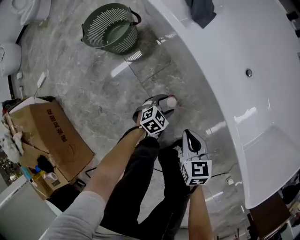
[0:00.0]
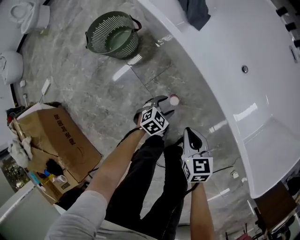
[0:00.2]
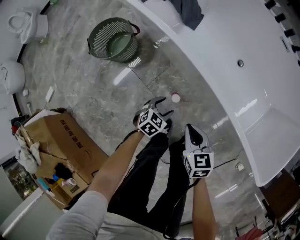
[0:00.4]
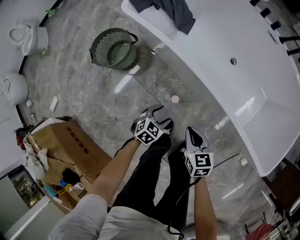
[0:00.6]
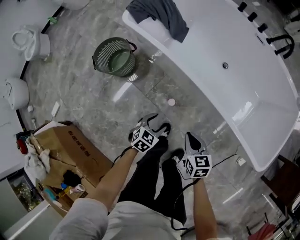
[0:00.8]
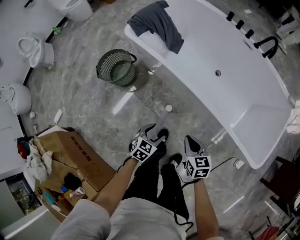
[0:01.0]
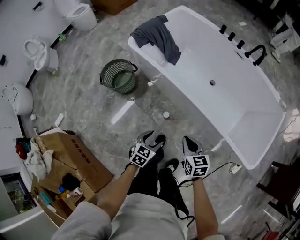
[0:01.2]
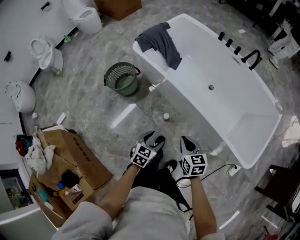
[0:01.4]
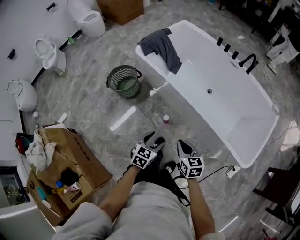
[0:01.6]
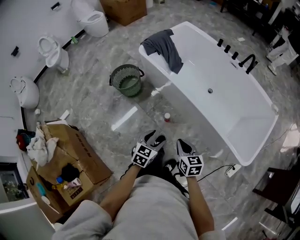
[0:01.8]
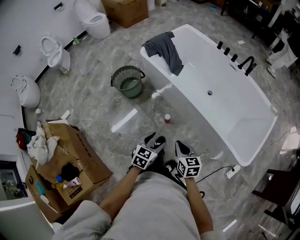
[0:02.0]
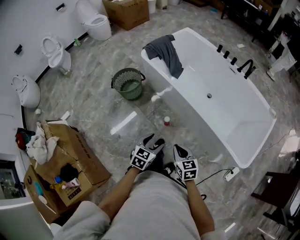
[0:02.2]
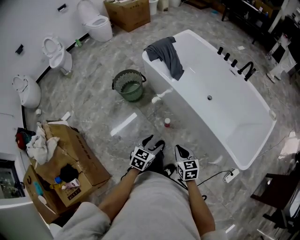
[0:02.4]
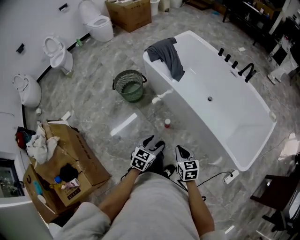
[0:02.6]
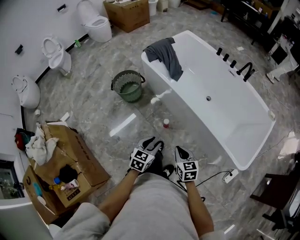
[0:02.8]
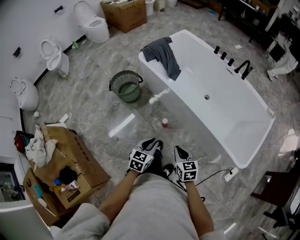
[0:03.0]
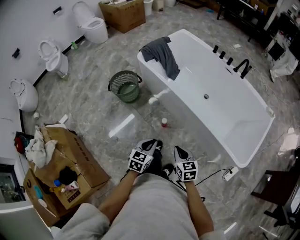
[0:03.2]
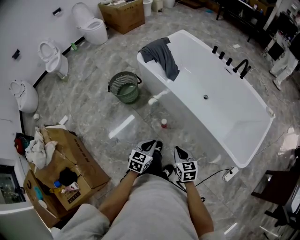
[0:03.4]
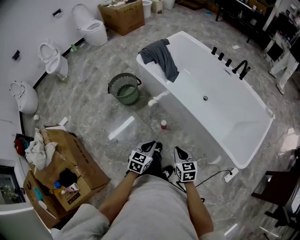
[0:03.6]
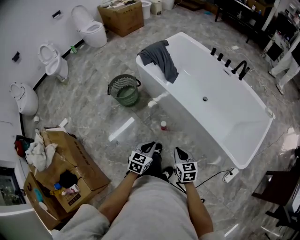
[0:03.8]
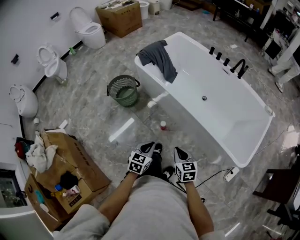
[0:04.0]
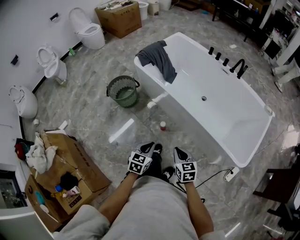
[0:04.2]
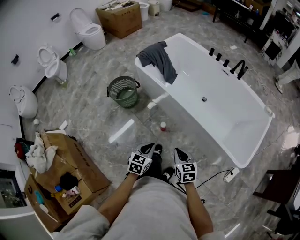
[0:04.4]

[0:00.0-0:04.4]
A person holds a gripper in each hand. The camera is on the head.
0:00.0 to 0:01.4: Both grippers travel together upward and backward, about 40 cm.
0:01.4 to 0:03.0: The right gripper moves backward, approximately 10 cm. The left gripper is displaced upward and backward by roughly 10 cm, and closes up.
0:03.0 to 0:04.4: The two grippers keep their place.

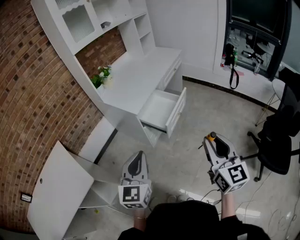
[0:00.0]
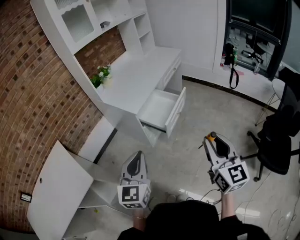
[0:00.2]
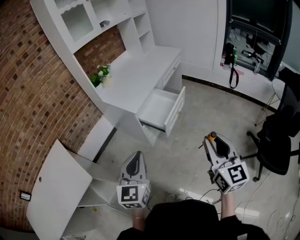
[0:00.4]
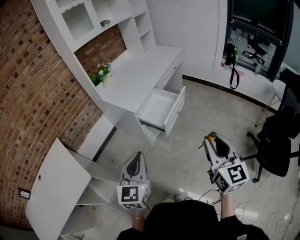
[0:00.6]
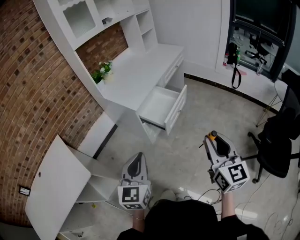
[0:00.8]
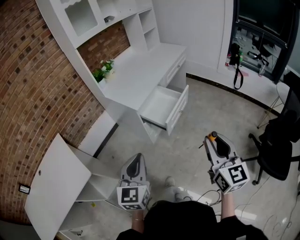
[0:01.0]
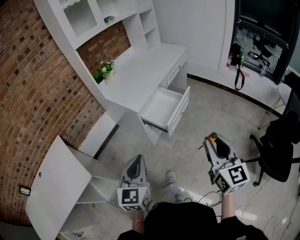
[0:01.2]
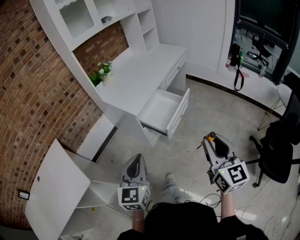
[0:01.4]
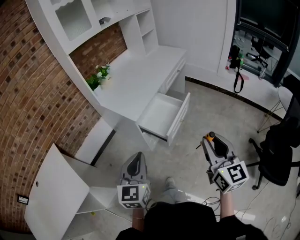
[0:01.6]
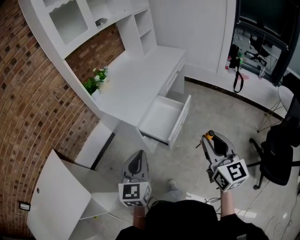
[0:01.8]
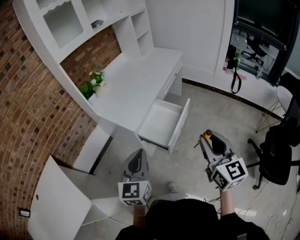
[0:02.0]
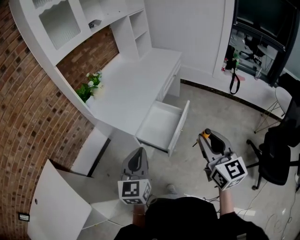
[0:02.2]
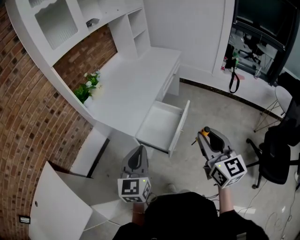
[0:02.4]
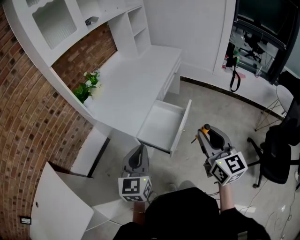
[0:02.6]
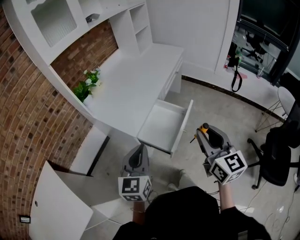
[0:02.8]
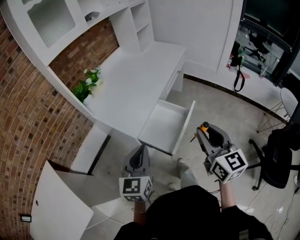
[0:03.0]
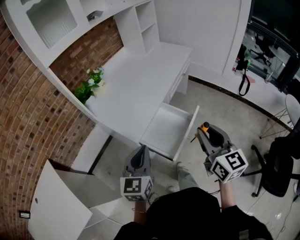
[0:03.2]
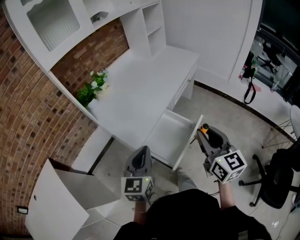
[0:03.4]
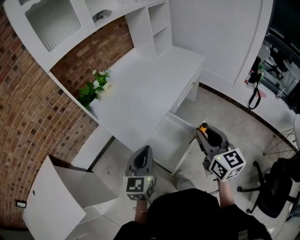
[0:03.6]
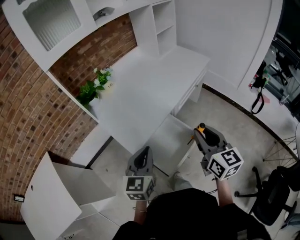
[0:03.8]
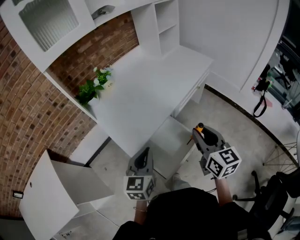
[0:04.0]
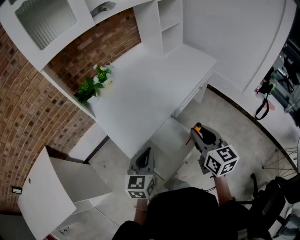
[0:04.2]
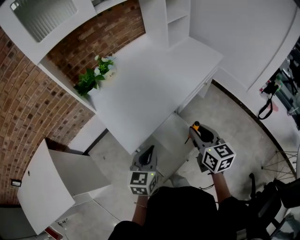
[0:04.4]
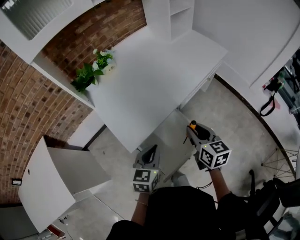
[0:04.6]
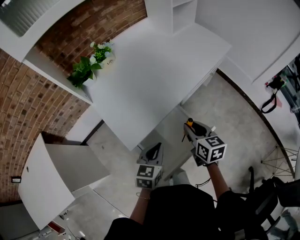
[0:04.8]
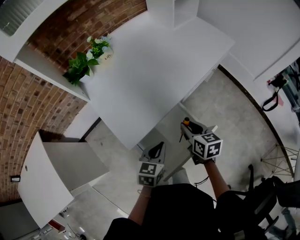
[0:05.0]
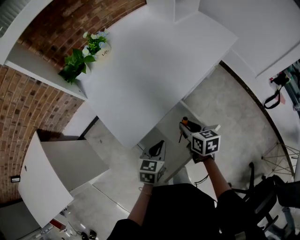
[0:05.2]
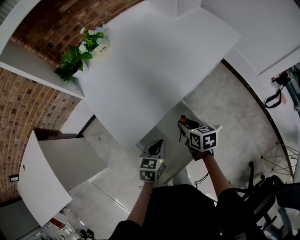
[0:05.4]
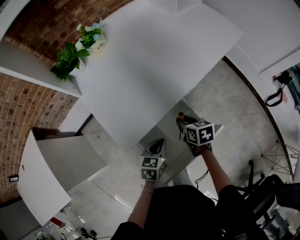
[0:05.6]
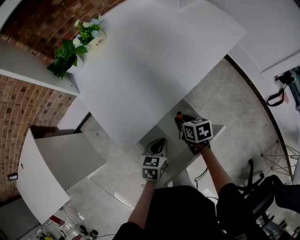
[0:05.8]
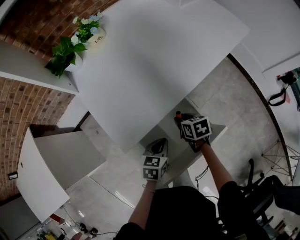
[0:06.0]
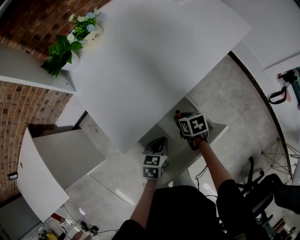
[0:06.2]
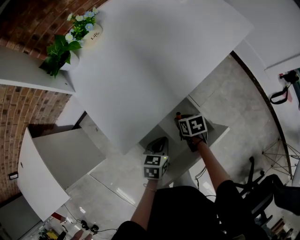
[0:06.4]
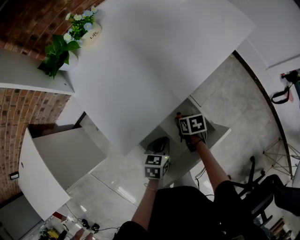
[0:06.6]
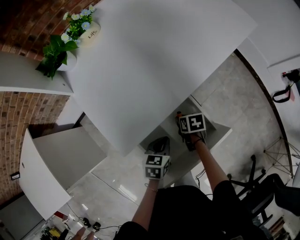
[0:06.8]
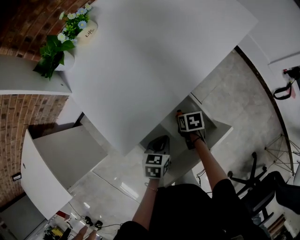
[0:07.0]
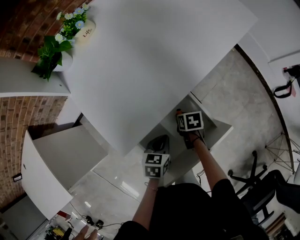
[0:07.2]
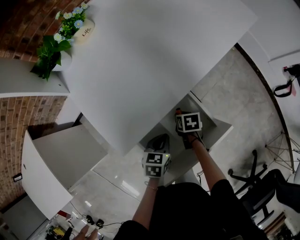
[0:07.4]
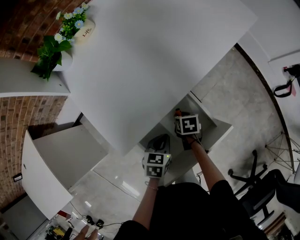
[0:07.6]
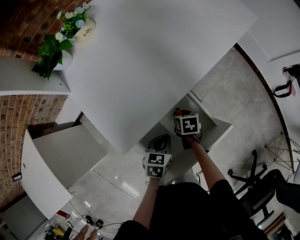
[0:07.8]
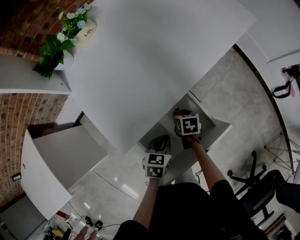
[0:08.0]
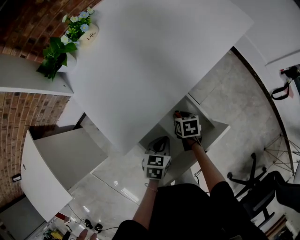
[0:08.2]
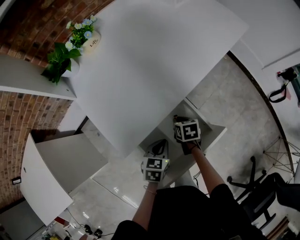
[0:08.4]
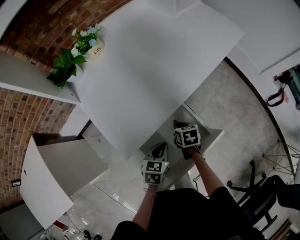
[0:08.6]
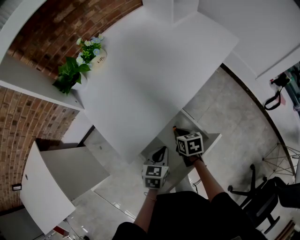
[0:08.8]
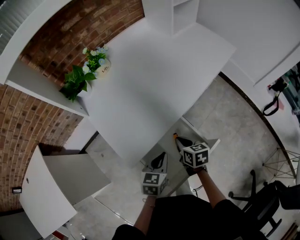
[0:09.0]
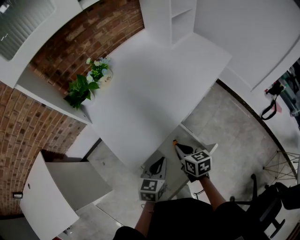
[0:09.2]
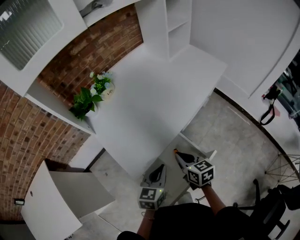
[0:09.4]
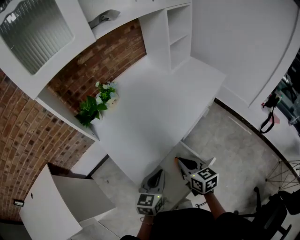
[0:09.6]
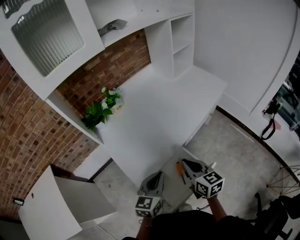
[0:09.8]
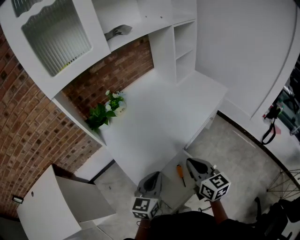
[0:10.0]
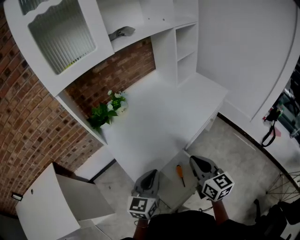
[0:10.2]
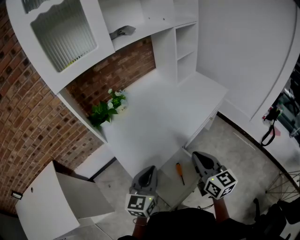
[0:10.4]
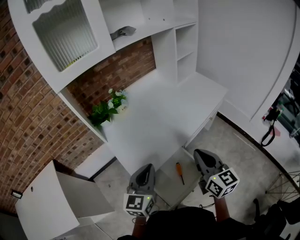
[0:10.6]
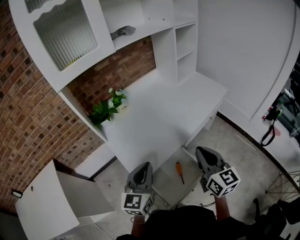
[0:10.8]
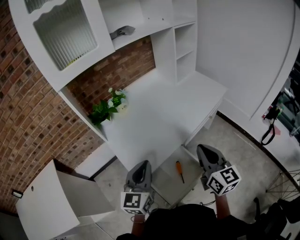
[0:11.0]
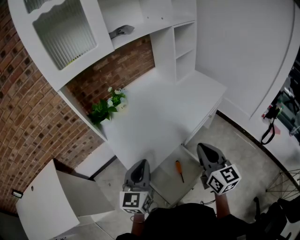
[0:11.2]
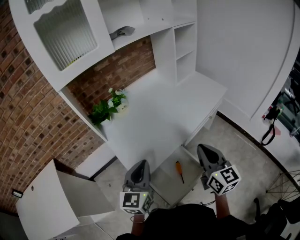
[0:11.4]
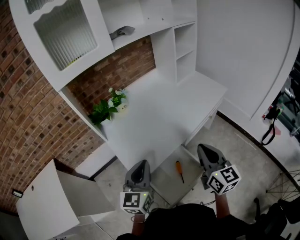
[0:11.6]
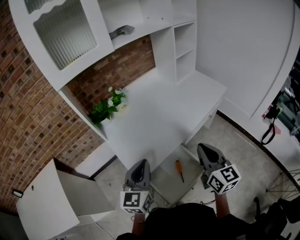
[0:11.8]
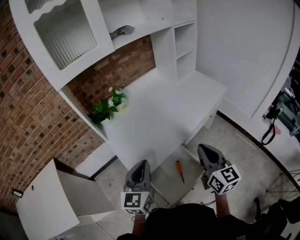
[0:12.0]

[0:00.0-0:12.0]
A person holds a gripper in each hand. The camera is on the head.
0:00.0 to 0:01.6: Both grippers travel together forward, some 10 cm.
0:01.6 to 0:03.0: Both grippers move forward, roughly 20 cm.
0:03.0 to 0:04.4: The right gripper moves forward, approximately 25 cm, and rotates approximately 20 degrees, while the left gripper shifts about 20 cm forward, downward and to the right.
0:04.4 to 0:06.0: The grippers both shift downward by roughly 25 cm. The right gripper points its fingers some 40 degrees further downward, while the left gripper swivels roughly 30 degrees.
0:06.0 to 0:07.6: The right gripper shifts approximately 10 cm downward.
0:07.6 to 0:09.0: Both grippers travel together upward, some 15 cm. The right gripper swivels about 30 degrees, and closes its fingers.
0:09.0 to 0:10.4: The grippers both shift upward by approximately 25 cm. The right gripper tilts its fingers some 40 degrees upward. The left gripper swivels some 30 degrees.
0:10.4 to 0:12.0: The grippers stay close to where they were, moving slightly.

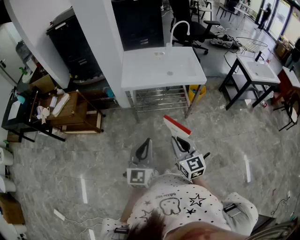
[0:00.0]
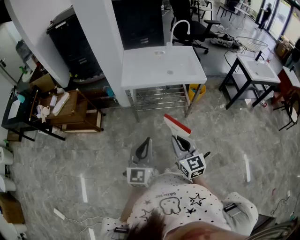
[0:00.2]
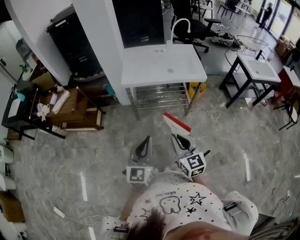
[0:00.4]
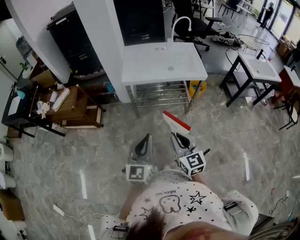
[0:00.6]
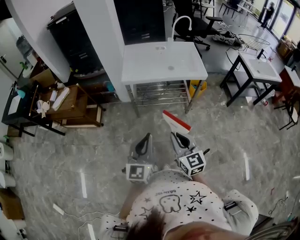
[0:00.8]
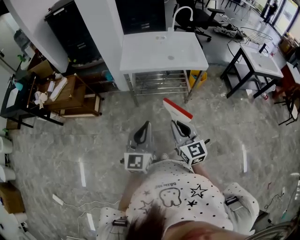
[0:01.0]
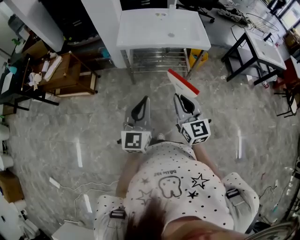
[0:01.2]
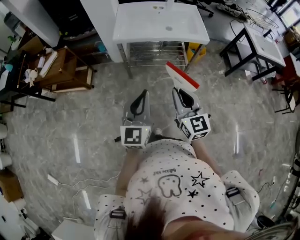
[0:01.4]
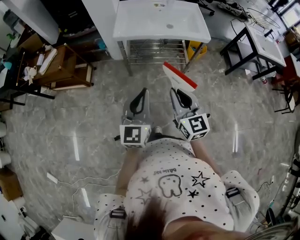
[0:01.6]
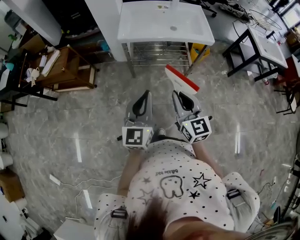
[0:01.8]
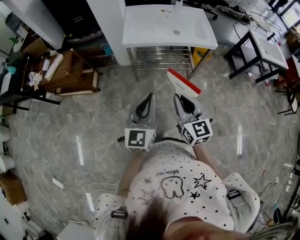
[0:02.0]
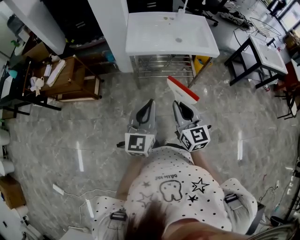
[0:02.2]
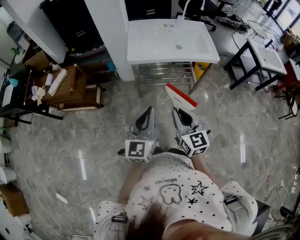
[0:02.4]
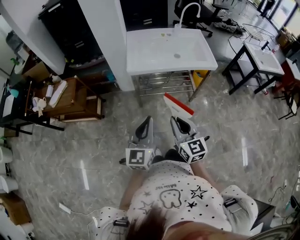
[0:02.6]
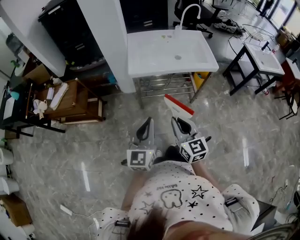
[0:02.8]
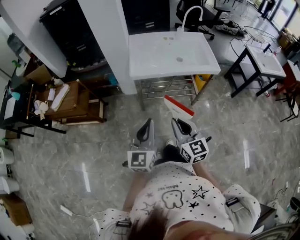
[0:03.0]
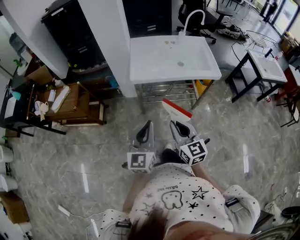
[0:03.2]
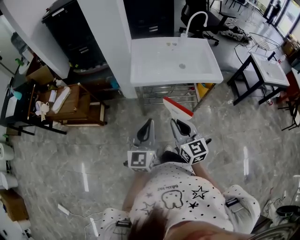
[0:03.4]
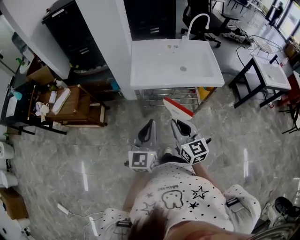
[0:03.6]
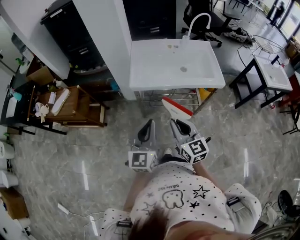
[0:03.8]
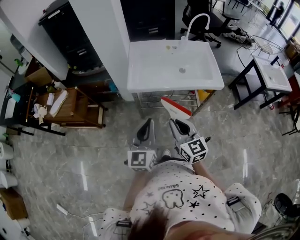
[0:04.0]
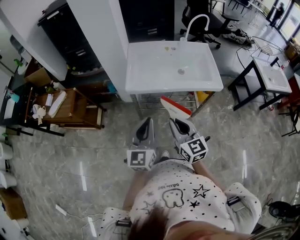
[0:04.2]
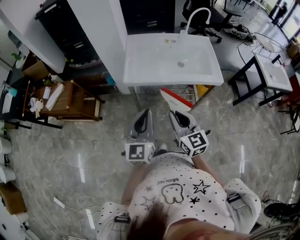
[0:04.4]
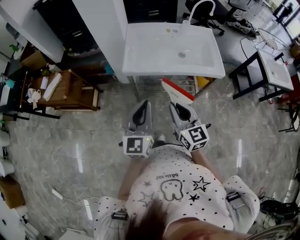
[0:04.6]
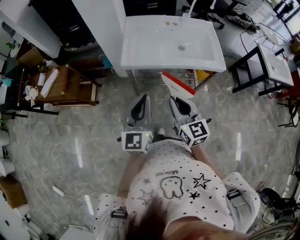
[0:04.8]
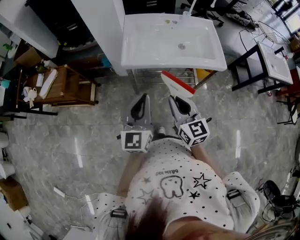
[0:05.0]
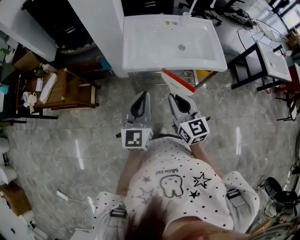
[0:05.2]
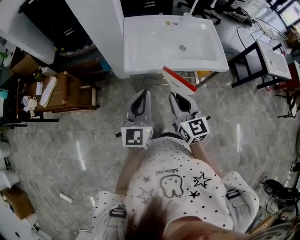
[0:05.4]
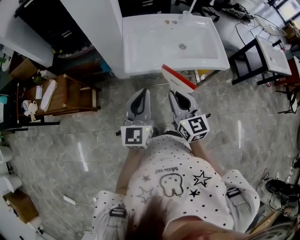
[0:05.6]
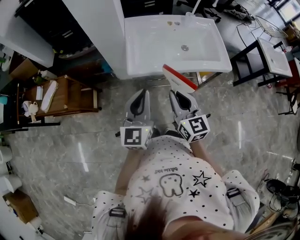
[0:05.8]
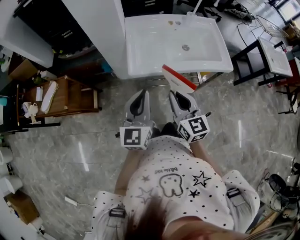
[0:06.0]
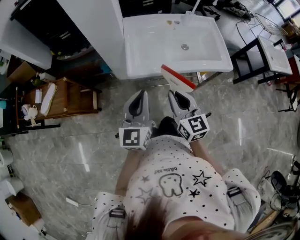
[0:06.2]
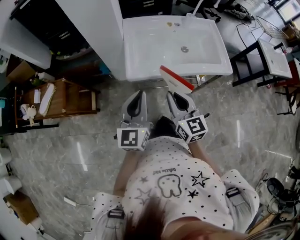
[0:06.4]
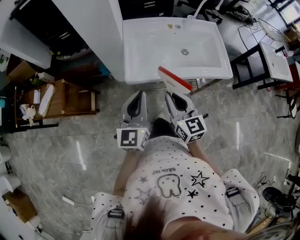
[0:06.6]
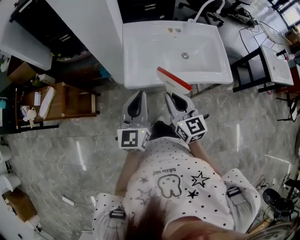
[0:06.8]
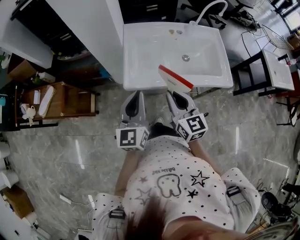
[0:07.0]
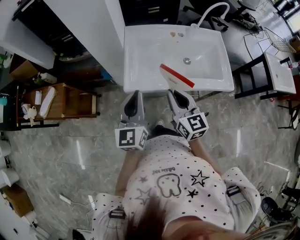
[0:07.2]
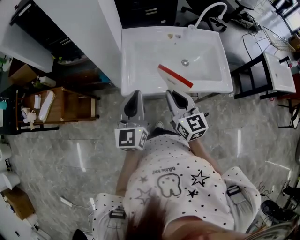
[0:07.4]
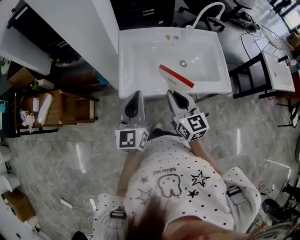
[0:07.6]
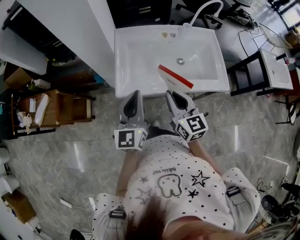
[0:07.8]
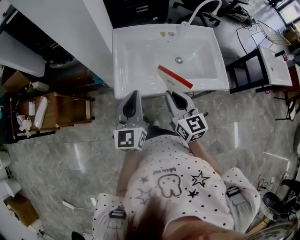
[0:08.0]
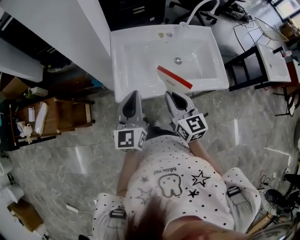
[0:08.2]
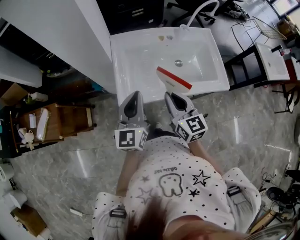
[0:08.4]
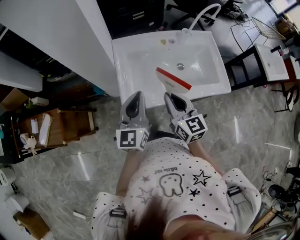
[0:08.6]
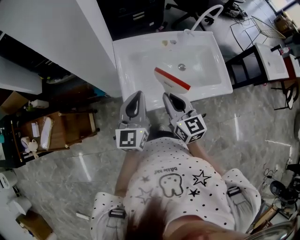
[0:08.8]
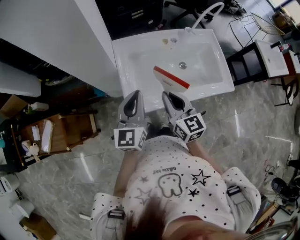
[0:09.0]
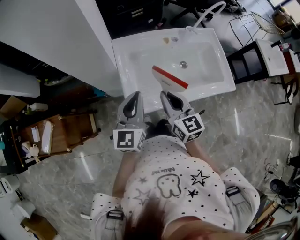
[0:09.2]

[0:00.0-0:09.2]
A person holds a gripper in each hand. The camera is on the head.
0:00.0 to 0:01.6: There are only small adjustments of the grippers.
0:01.6 to 0:03.0: The grippers both shift to the left and forward by approximately 15 cm.
0:03.0 to 0:04.6: Both grippers move forward and to the right, approximately 15 cm.
0:04.6 to 0:06.2: The two grippers go roughly 15 cm forward and to the left.
0:06.2 to 0:07.6: The left gripper heads forward, covering about 10 cm. Meanwhile the right gripper goes about 15 cm forward and to the right.
0:07.6 to 0:09.2: The left gripper is displaced forward by roughly 10 cm. The right gripper heads forward and to the left, covering about 10 cm.
